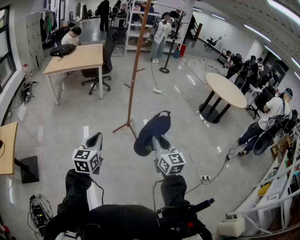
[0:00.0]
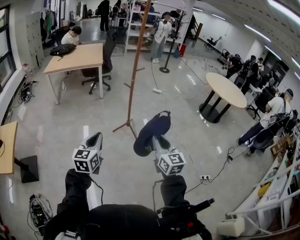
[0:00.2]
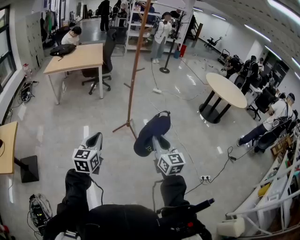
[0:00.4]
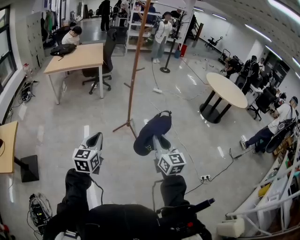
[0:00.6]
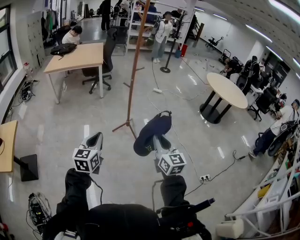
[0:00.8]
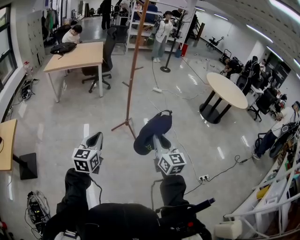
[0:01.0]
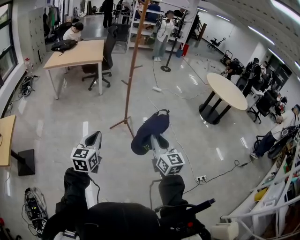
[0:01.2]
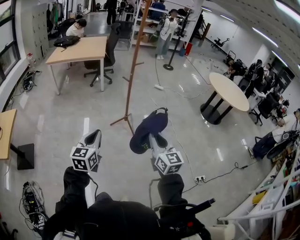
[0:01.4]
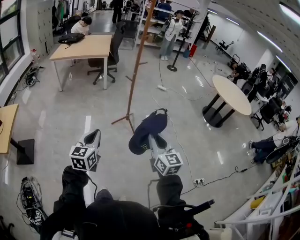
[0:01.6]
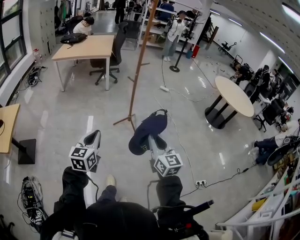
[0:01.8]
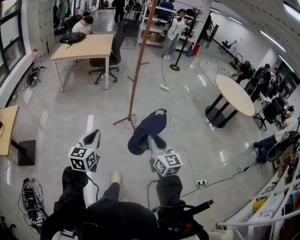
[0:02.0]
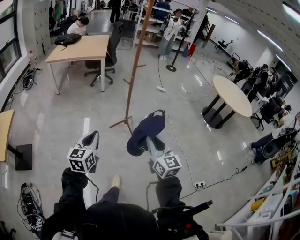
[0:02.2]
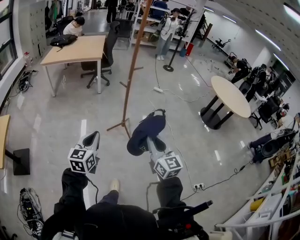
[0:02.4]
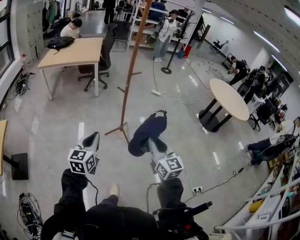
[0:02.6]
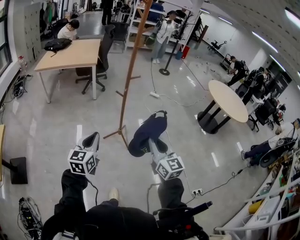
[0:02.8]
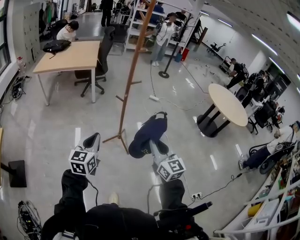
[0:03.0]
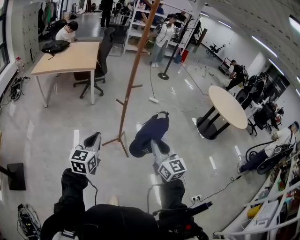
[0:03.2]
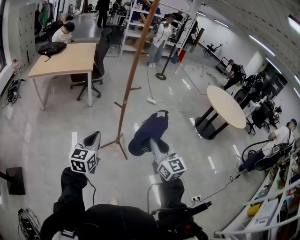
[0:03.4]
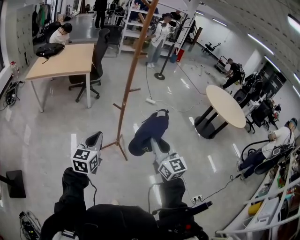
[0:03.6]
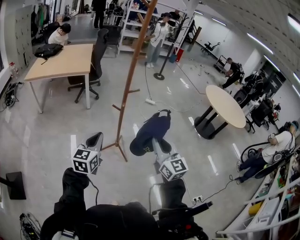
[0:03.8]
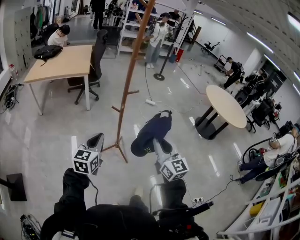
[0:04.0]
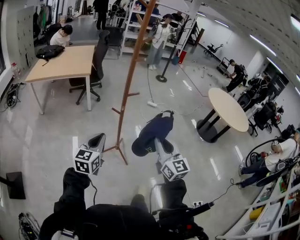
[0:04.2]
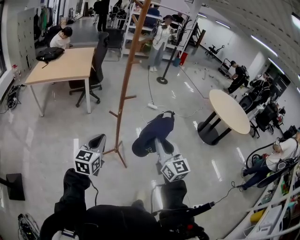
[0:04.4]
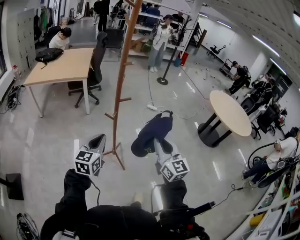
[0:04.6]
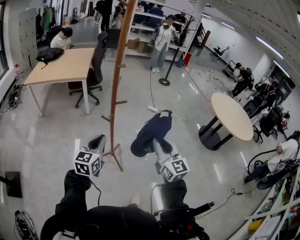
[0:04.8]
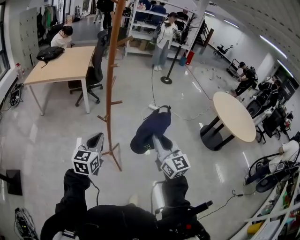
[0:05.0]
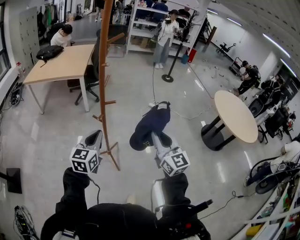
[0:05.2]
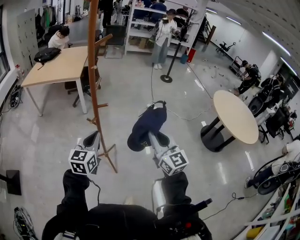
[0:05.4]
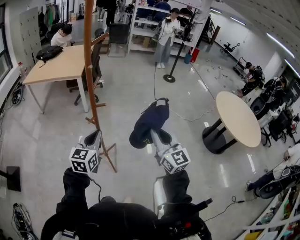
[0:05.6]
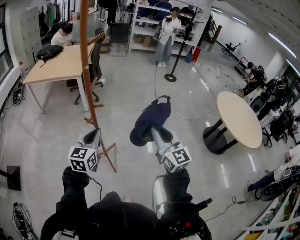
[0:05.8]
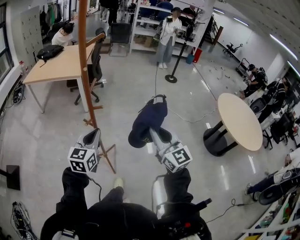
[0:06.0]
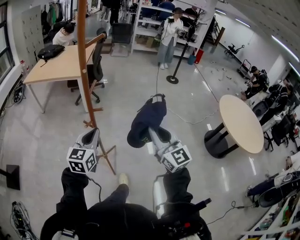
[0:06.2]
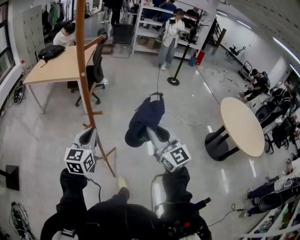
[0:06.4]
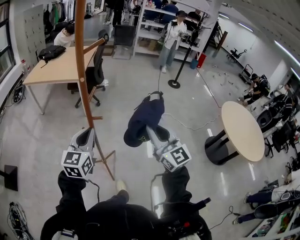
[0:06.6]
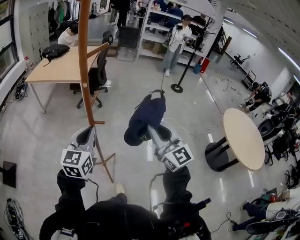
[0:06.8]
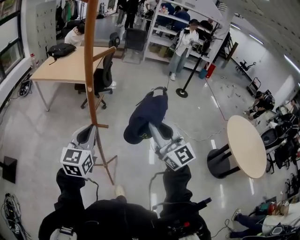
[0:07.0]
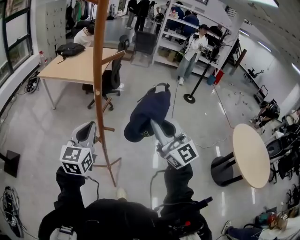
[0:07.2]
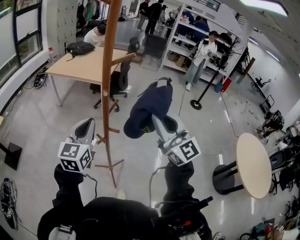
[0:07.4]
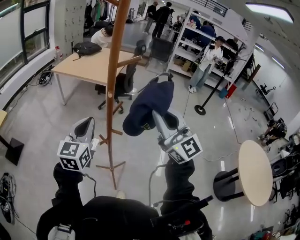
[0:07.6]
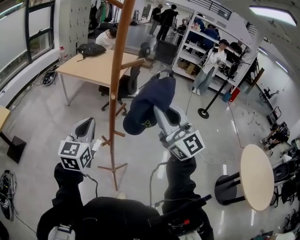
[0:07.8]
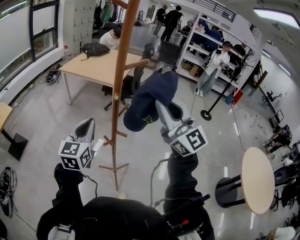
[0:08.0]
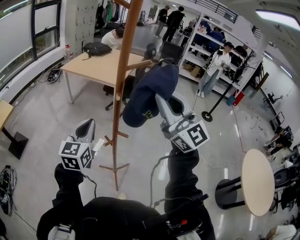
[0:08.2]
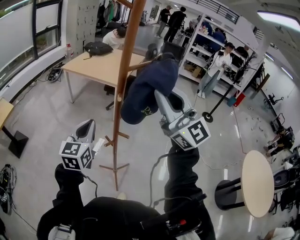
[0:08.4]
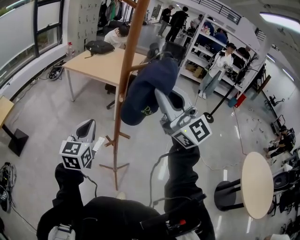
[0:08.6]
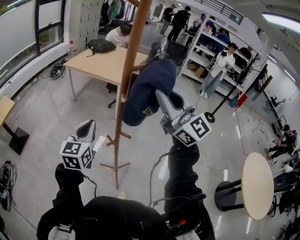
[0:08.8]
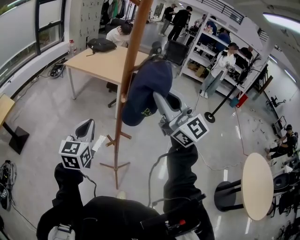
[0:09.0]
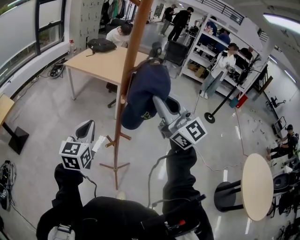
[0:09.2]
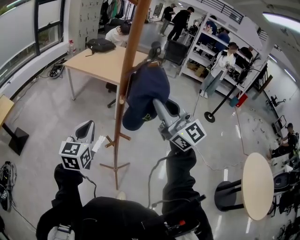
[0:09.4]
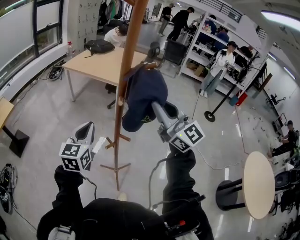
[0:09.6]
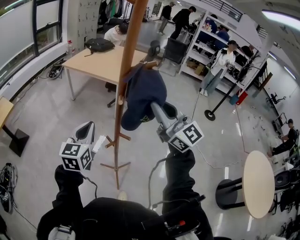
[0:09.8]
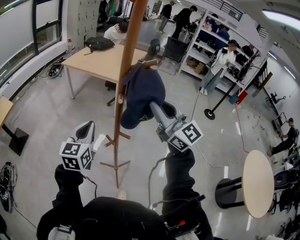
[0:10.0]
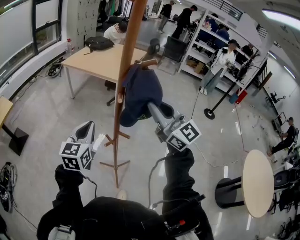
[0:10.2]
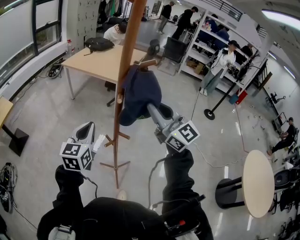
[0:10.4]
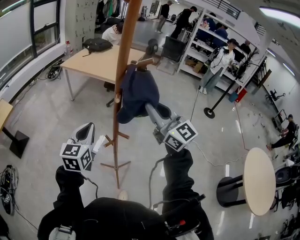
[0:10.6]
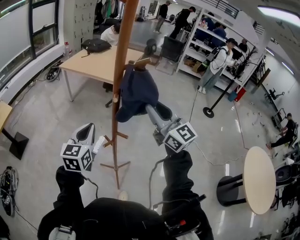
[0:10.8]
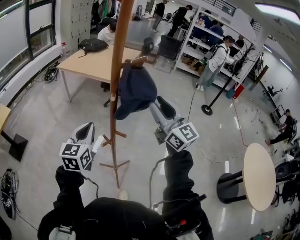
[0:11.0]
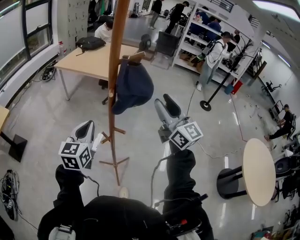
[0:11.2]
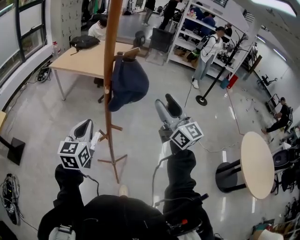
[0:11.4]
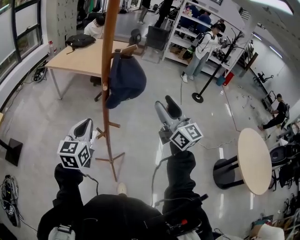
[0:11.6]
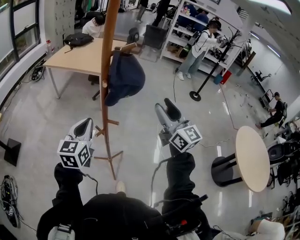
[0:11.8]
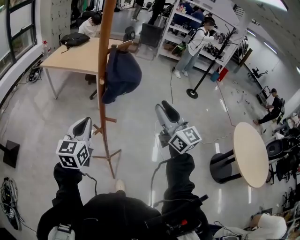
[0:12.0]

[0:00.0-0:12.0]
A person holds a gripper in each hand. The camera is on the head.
0:00.0 to 0:01.6: The grippers make only small movements.
0:01.6 to 0:03.0: The two grippers go roughly 20 cm forward.
0:03.0 to 0:04.4: The left gripper moves forward and to the right, about 15 cm. Meanwhile the right gripper heads forward, covering roughly 15 cm.
0:04.4 to 0:06.0: The left gripper moves to the right and forward, some 20 cm. Meanwhile the right gripper moves forward and to the right, approximately 25 cm.
0:06.0 to 0:07.6: The right gripper moves some 25 cm, and rotates about 30 degrees. Meanwhile the left gripper ends up approximately 15 cm from where it was, and turns by some 20 degrees.
0:07.6 to 0:09.0: The right gripper is displaced forward by about 5 cm. Meanwhile the left gripper moves about 5 cm.
0:09.0 to 0:10.4: The right gripper moves downward, some 5 cm.
0:10.4 to 0:12.0: The right gripper moves to the right and backward, some 15 cm, rotates roughly 30 degrees, and opens its fingers. Meanwhile the left gripper moves some 5 cm.

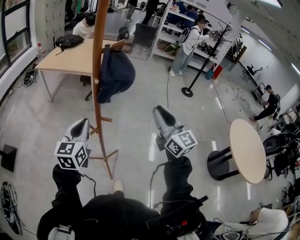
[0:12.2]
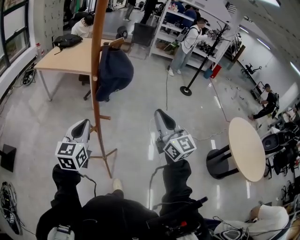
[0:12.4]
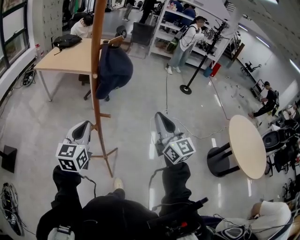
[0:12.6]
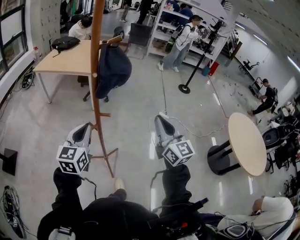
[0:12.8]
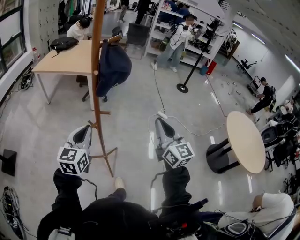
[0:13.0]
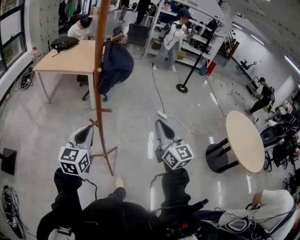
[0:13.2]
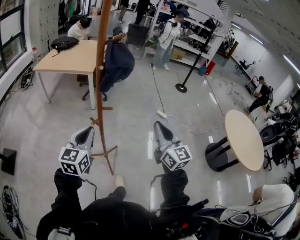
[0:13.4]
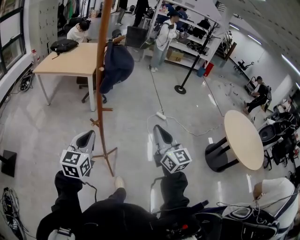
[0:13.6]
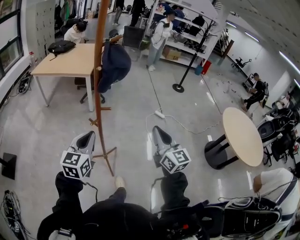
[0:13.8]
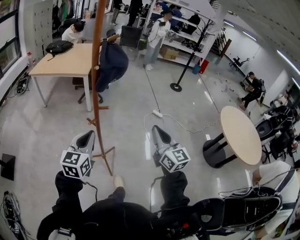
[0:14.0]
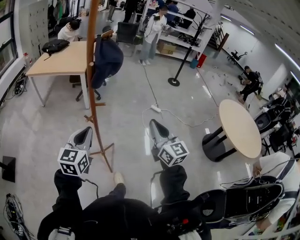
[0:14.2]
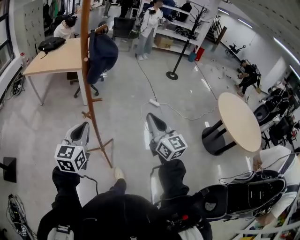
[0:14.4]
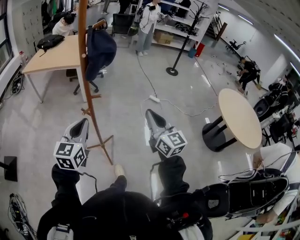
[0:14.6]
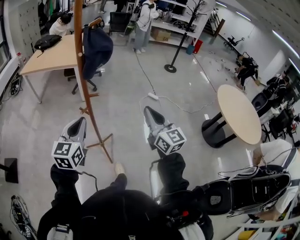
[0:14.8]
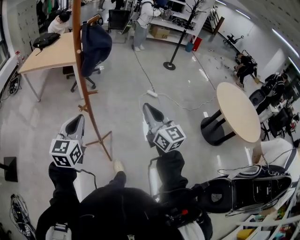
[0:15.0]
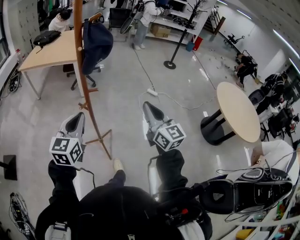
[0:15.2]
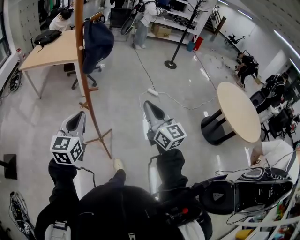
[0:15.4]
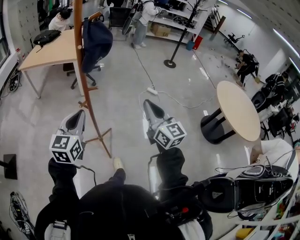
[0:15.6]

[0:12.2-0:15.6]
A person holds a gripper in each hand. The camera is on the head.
0:12.2 to 0:13.8: The left gripper goes some 10 cm backward, while the right gripper moves backward and downward, approximately 15 cm.
0:13.8 to 0:15.6: There are only small adjustments of the grippers.

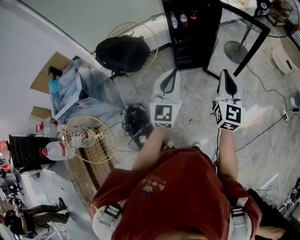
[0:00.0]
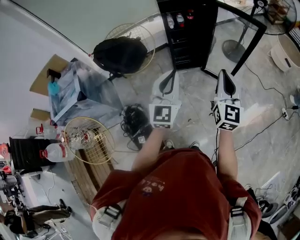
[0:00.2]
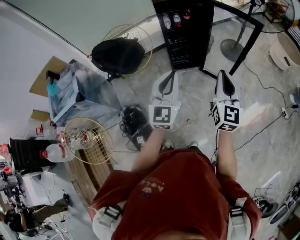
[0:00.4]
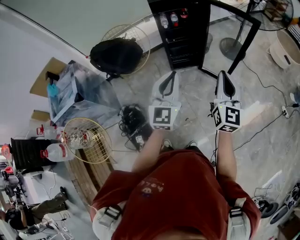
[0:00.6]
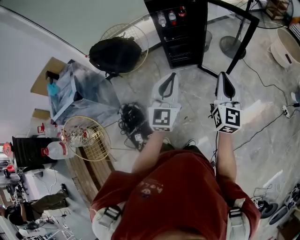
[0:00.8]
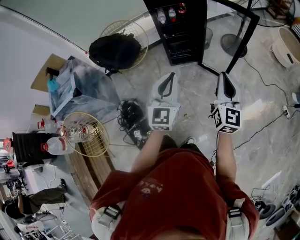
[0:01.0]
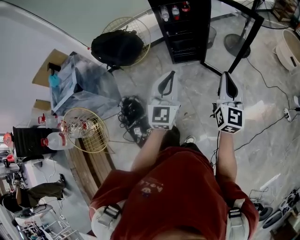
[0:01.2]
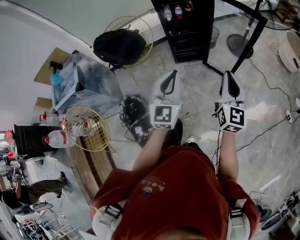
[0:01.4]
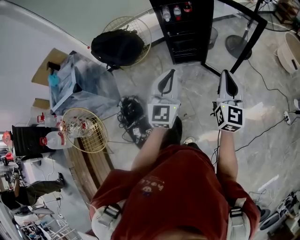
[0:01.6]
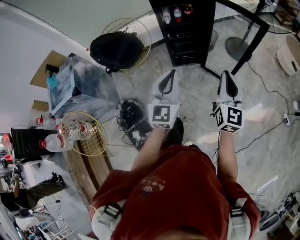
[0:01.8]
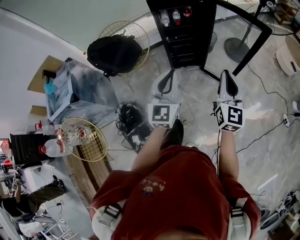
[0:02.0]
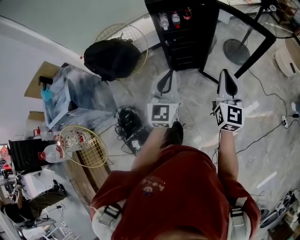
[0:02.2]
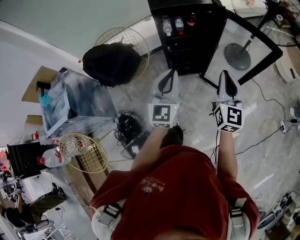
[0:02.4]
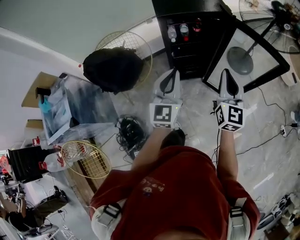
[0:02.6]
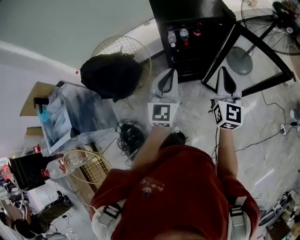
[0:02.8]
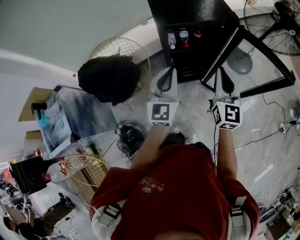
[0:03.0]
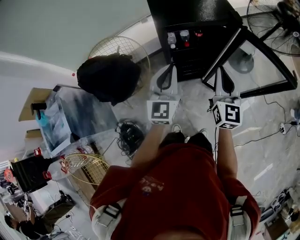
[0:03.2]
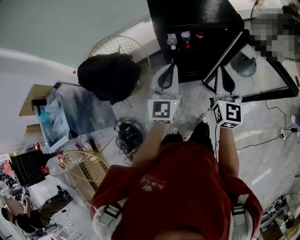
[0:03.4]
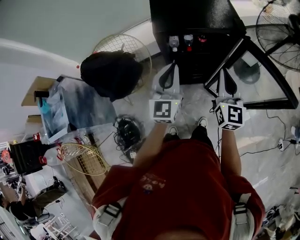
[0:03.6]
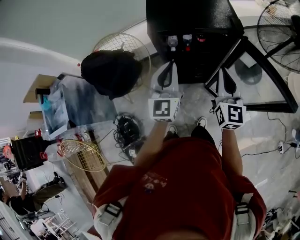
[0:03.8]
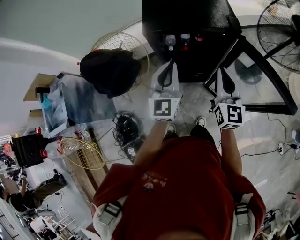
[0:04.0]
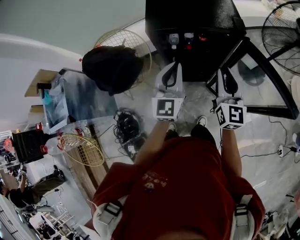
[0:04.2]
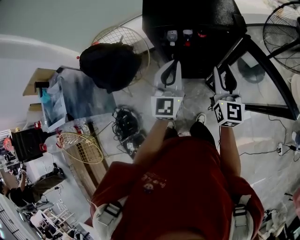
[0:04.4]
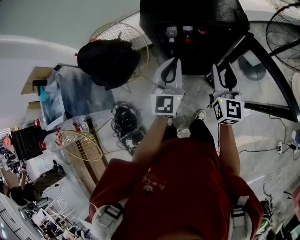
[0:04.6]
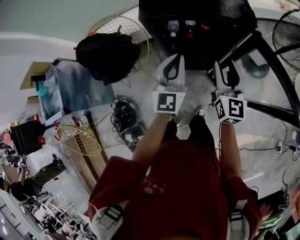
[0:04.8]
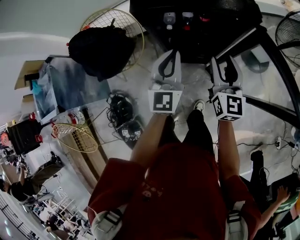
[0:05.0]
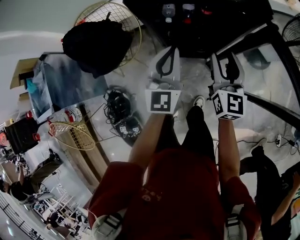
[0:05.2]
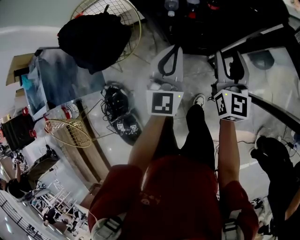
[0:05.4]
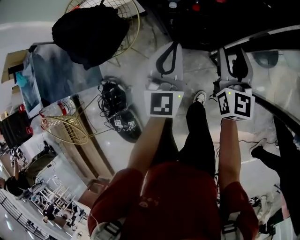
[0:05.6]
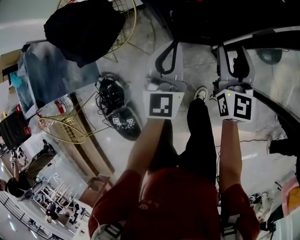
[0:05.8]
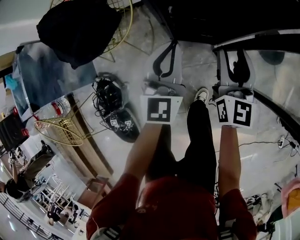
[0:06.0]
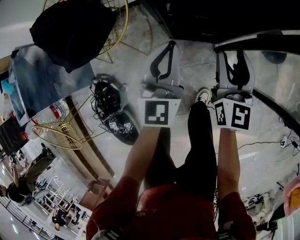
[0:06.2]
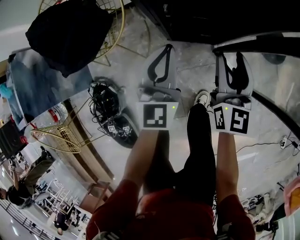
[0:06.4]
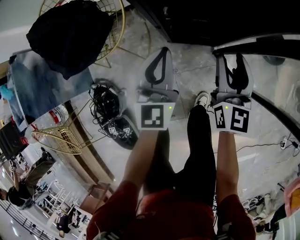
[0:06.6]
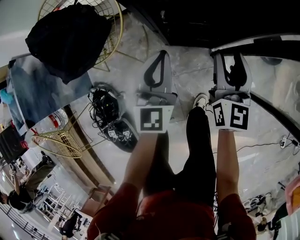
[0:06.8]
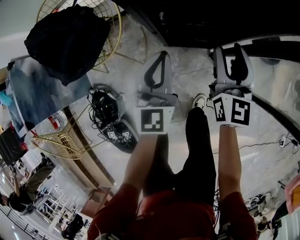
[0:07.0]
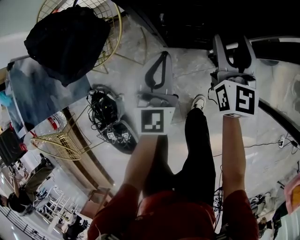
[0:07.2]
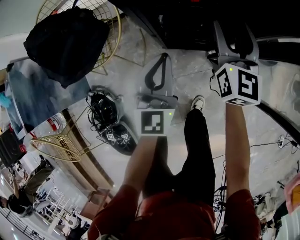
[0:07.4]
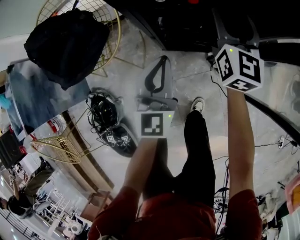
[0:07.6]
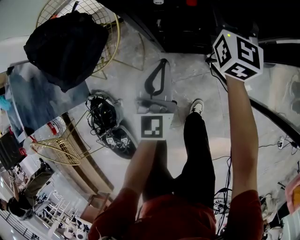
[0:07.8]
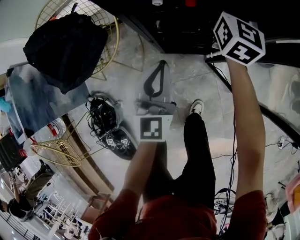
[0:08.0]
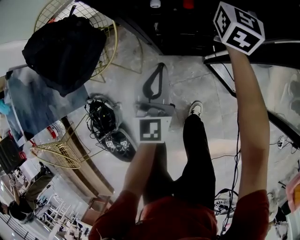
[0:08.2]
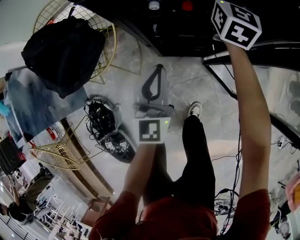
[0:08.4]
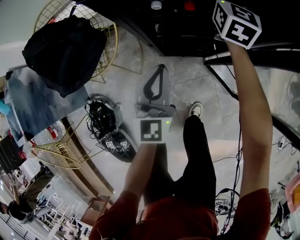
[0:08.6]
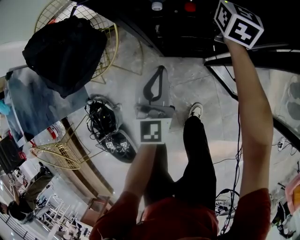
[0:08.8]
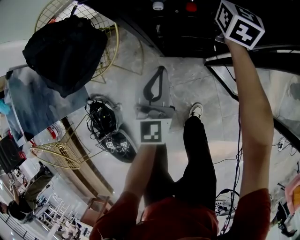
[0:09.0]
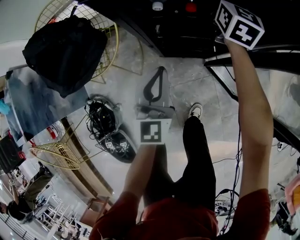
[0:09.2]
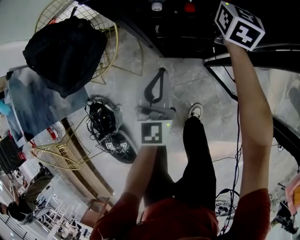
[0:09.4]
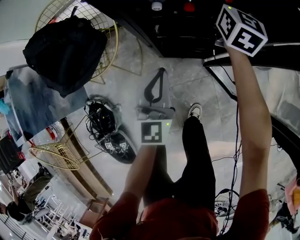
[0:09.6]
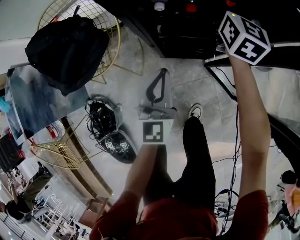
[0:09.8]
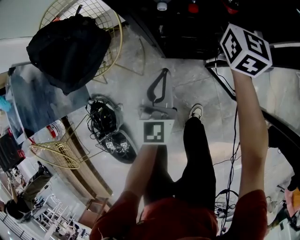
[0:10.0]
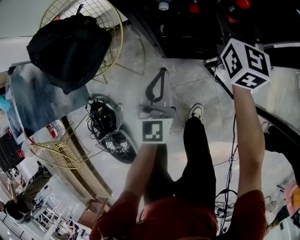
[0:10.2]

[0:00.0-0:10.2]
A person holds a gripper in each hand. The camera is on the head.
0:00.0 to 0:01.4: Both grippers move to the right, about 10 cm.
0:01.4 to 0:03.0: Both grippers are carried forward and to the left, about 40 cm.
0:03.0 to 0:04.4: The right gripper heads forward, to the right and downward, covering some 15 cm, and opens. The left gripper is displaced to the right and forward by some 15 cm.
0:04.4 to 0:05.8: The grippers both shift downward by roughly 20 cm.
0:05.8 to 0:07.2: The right gripper shifts about 10 cm forward and downward, while the left gripper shifts roughly 10 cm downward.
0:07.2 to 0:08.8: The right gripper shifts approximately 20 cm forward.
0:08.8 to 0:10.2: The right gripper travels backward by about 10 cm.
